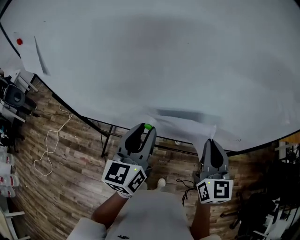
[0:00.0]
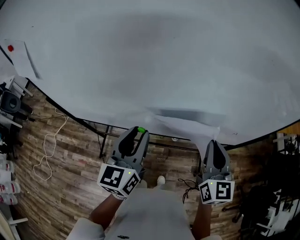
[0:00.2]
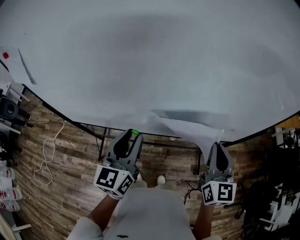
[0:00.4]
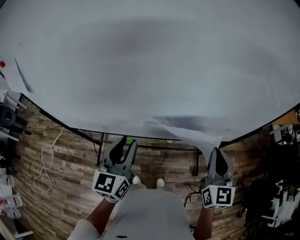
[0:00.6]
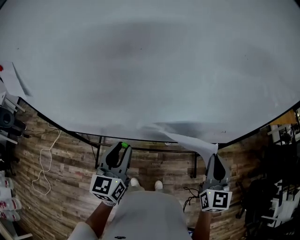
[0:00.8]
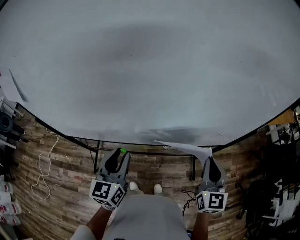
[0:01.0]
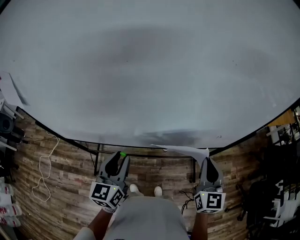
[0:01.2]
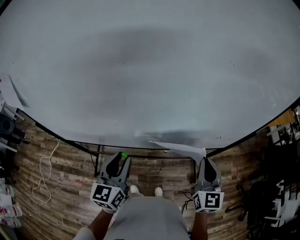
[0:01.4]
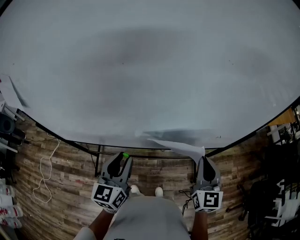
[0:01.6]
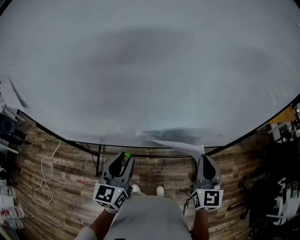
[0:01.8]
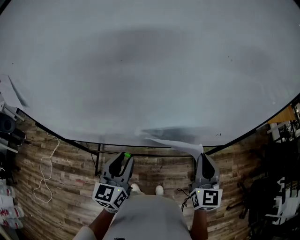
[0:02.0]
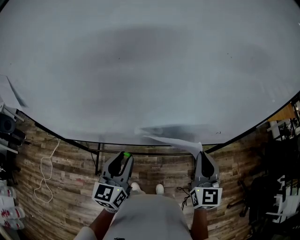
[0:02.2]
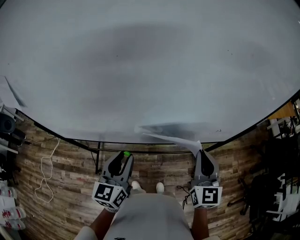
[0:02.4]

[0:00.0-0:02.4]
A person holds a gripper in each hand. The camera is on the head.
0:00.0 to 0:01.2: The left gripper shifts approximately 5 cm downward. Meanwhile the right gripper moves to the right, about 10 cm.
0:01.2 to 0:02.4: The grippers move only a little.

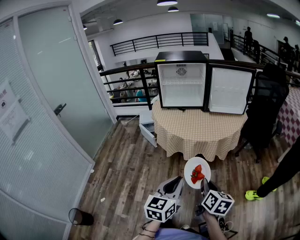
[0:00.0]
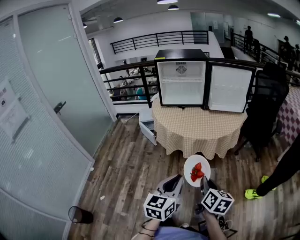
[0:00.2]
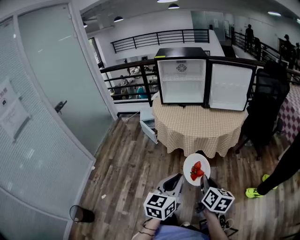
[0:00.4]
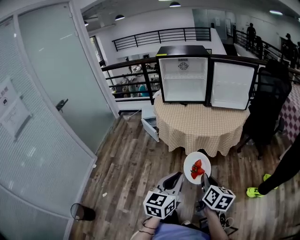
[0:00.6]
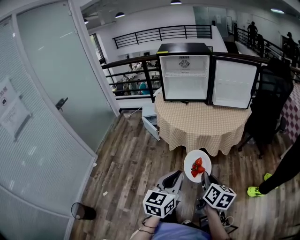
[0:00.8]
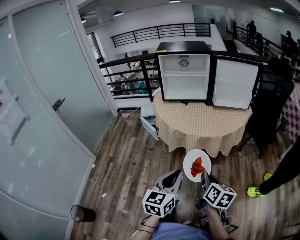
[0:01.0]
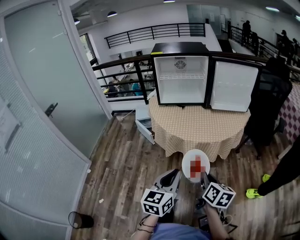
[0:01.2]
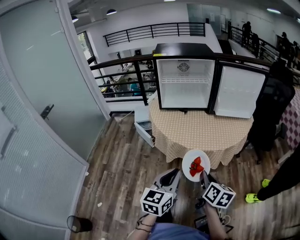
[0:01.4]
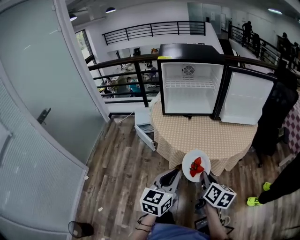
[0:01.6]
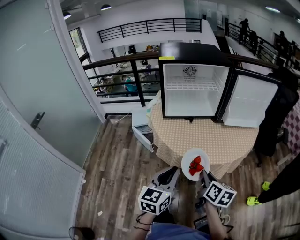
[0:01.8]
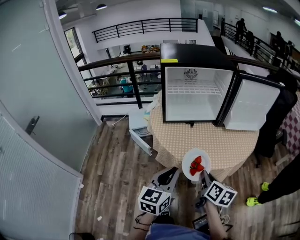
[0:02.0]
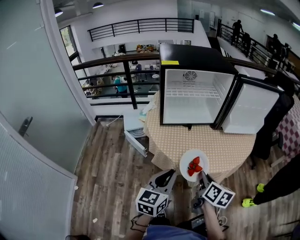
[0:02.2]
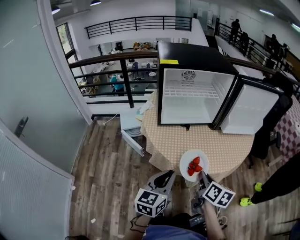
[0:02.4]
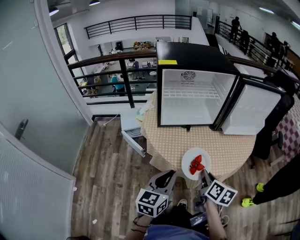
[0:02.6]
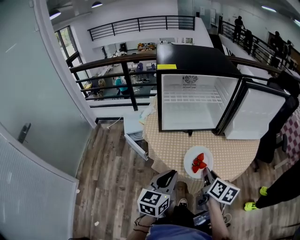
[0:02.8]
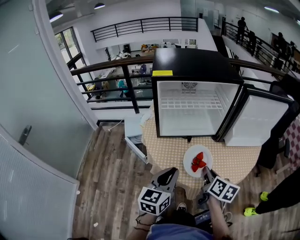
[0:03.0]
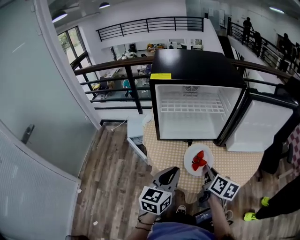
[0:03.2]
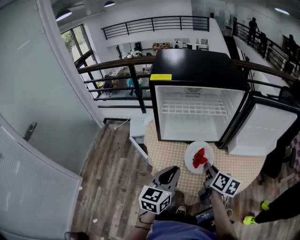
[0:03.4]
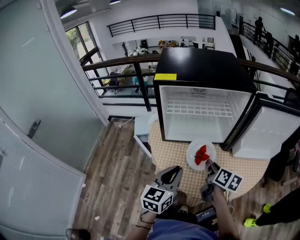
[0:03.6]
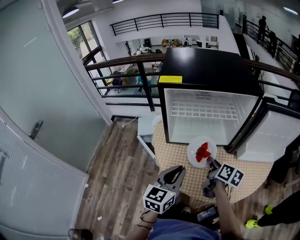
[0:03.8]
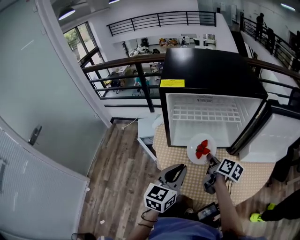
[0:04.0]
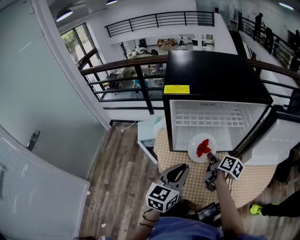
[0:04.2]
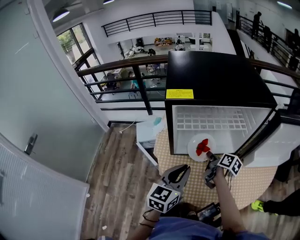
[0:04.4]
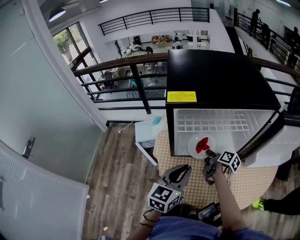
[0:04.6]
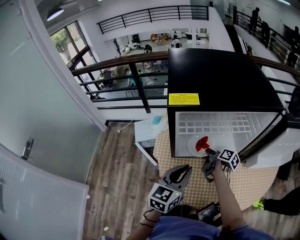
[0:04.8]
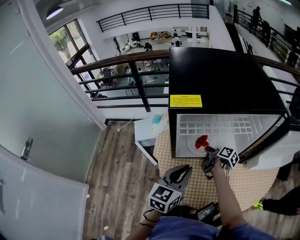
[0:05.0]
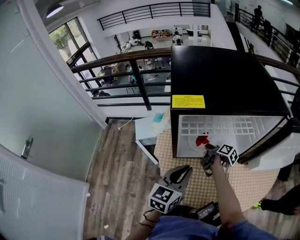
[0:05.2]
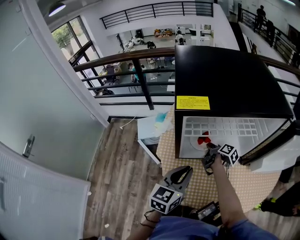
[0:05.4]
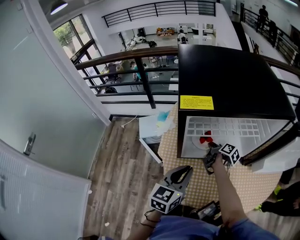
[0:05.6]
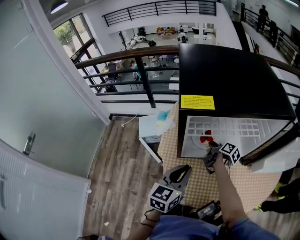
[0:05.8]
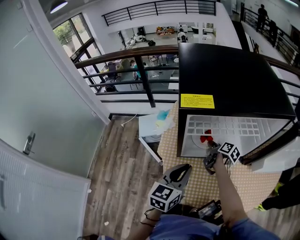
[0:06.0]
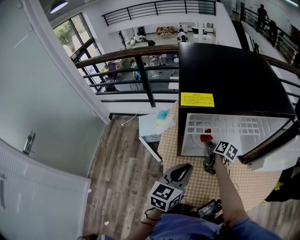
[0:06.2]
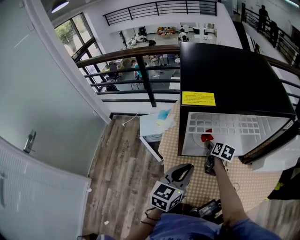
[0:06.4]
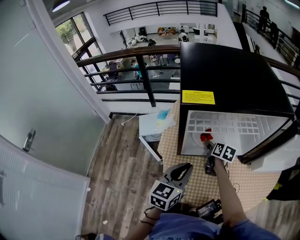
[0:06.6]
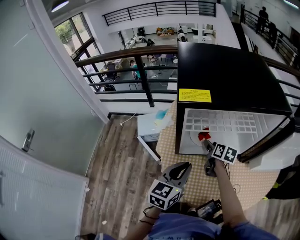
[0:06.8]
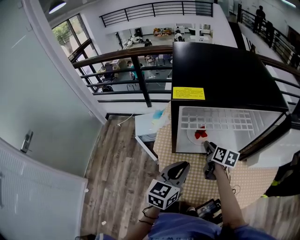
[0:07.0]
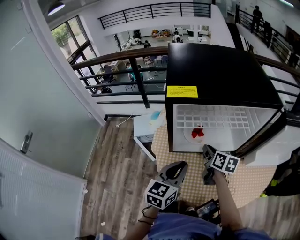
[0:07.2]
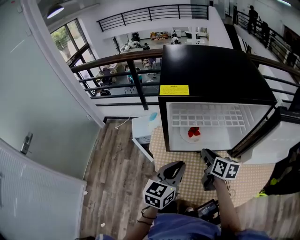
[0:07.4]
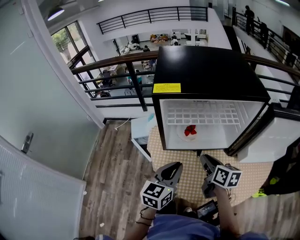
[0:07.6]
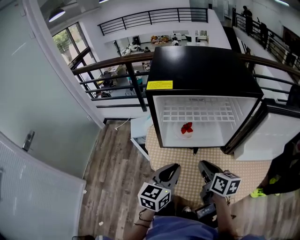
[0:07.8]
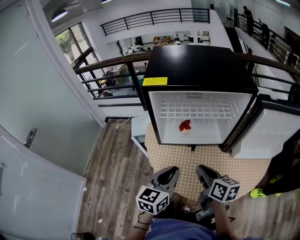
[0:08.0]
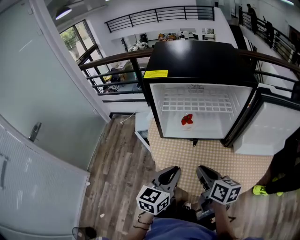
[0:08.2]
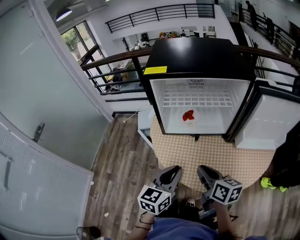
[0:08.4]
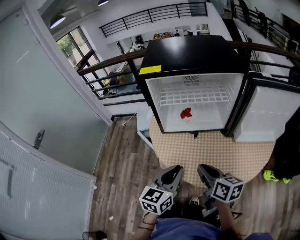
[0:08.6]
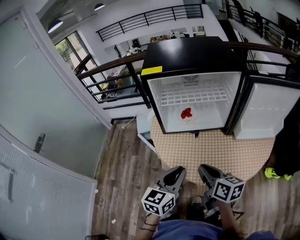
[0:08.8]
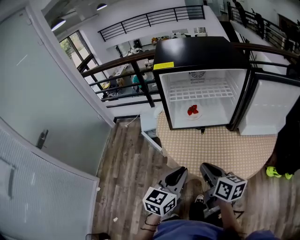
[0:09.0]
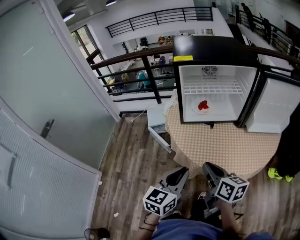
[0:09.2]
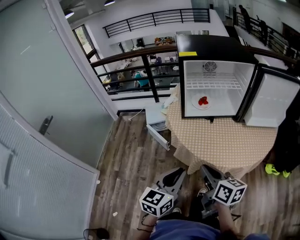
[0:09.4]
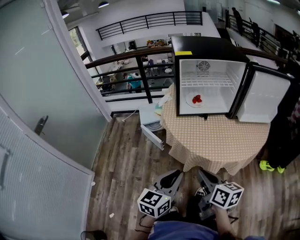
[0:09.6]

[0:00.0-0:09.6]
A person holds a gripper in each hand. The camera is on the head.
0:00.0 to 0:01.6: Both grippers move forward and to the left, some 25 cm.
0:01.6 to 0:03.2: The two grippers go roughly 30 cm forward.
0:03.2 to 0:04.8: The left gripper is displaced forward by some 15 cm. Meanwhile the right gripper goes some 30 cm forward and downward, and rotates some 30 degrees.
0:04.8 to 0:06.4: The right gripper changes place by some 5 cm, swivels approximately 40 degrees, and opens.
0:06.4 to 0:08.0: The left gripper is displaced backward and to the right by about 15 cm. The right gripper heads backward and upward, covering about 30 cm, rotates approximately 30 degrees, and closes up.
0:08.0 to 0:09.6: The grippers both shift backward and to the left by some 30 cm.

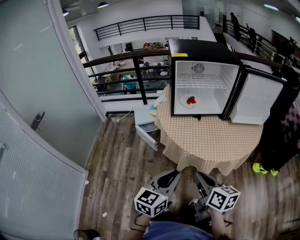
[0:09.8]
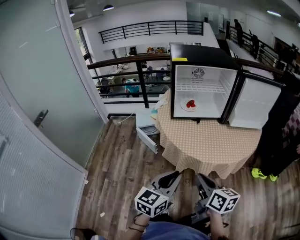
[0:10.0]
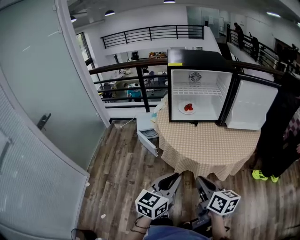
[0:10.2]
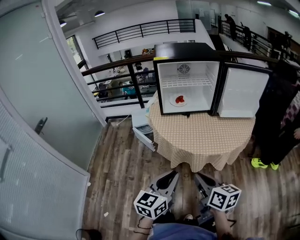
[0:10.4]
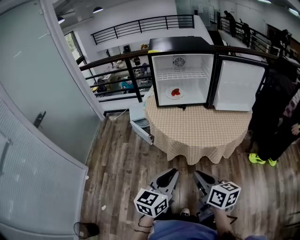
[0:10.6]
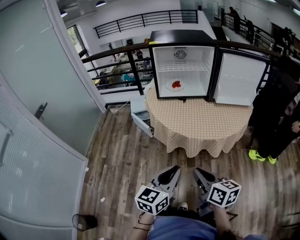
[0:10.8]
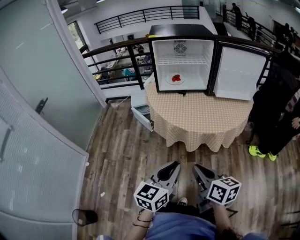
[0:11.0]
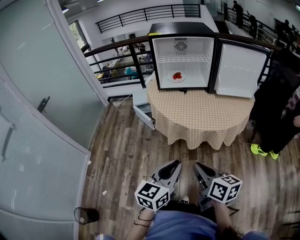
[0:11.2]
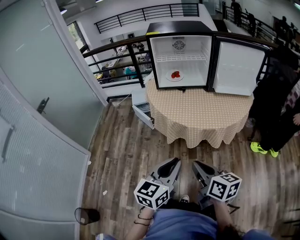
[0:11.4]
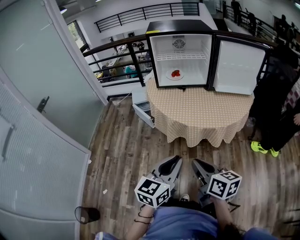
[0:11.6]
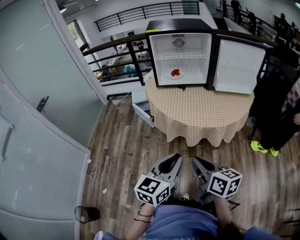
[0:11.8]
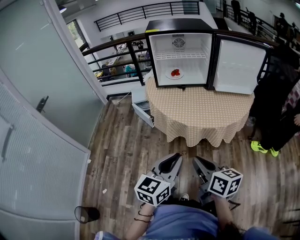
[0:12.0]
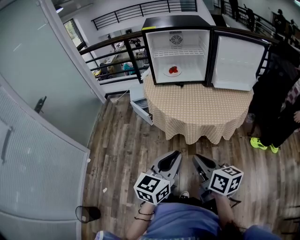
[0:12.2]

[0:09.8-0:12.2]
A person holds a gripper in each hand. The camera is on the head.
0:09.8 to 0:11.0: Both grippers move backward and to the right, some 20 cm.
0:11.0 to 0:12.2: The grippers move only a little.

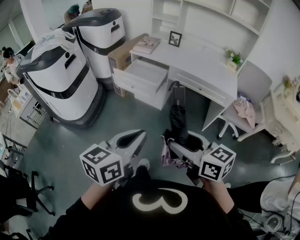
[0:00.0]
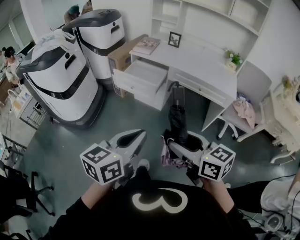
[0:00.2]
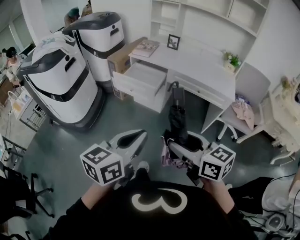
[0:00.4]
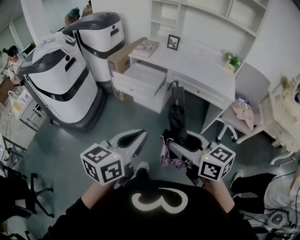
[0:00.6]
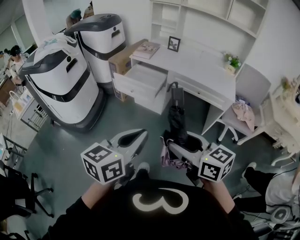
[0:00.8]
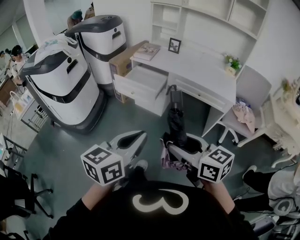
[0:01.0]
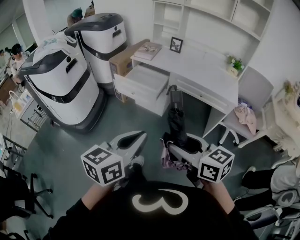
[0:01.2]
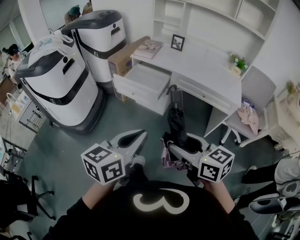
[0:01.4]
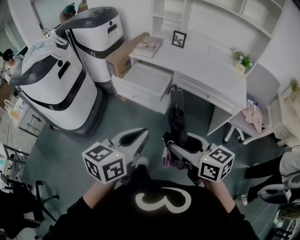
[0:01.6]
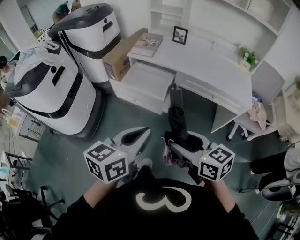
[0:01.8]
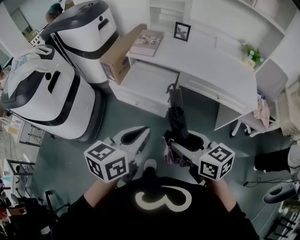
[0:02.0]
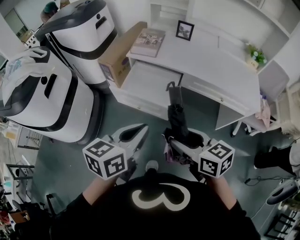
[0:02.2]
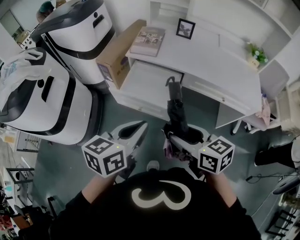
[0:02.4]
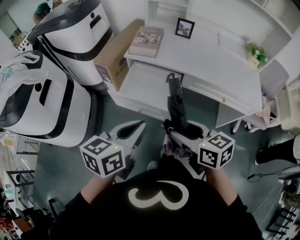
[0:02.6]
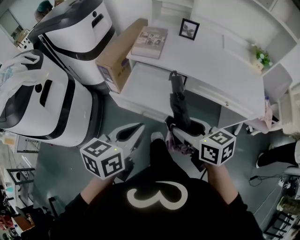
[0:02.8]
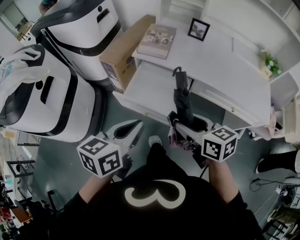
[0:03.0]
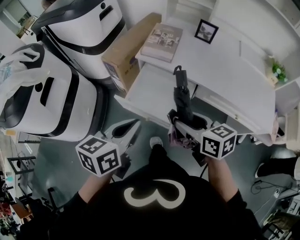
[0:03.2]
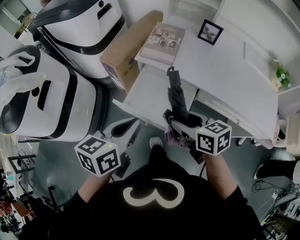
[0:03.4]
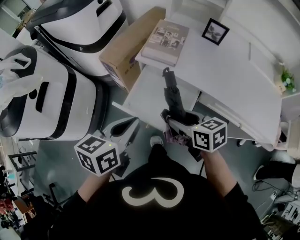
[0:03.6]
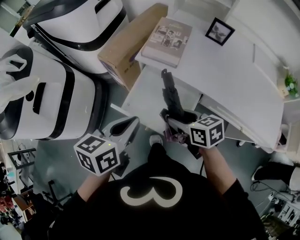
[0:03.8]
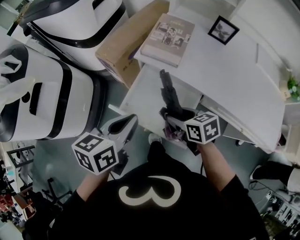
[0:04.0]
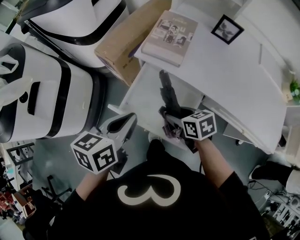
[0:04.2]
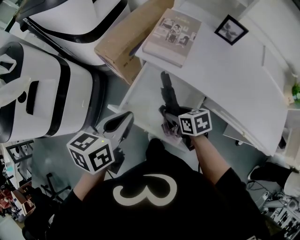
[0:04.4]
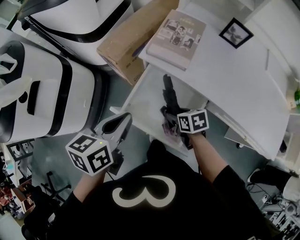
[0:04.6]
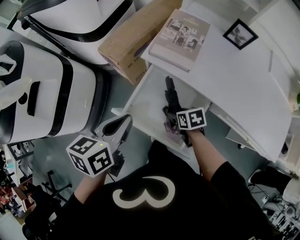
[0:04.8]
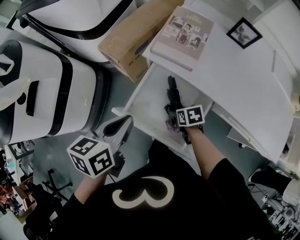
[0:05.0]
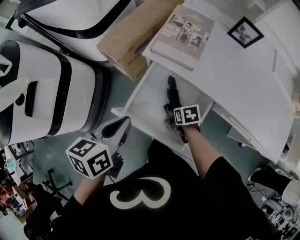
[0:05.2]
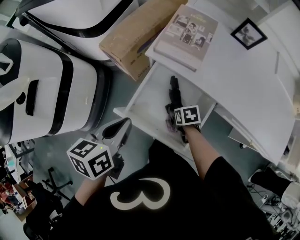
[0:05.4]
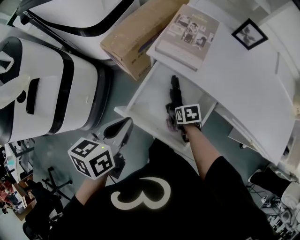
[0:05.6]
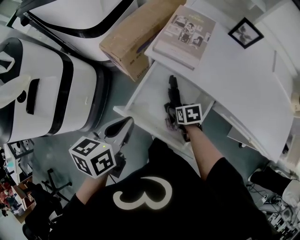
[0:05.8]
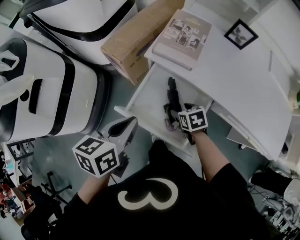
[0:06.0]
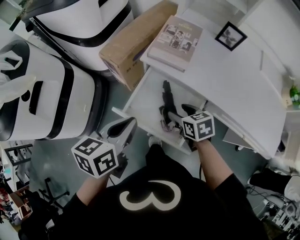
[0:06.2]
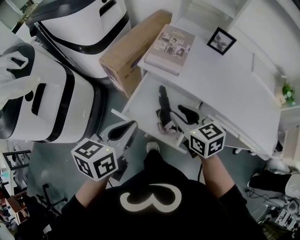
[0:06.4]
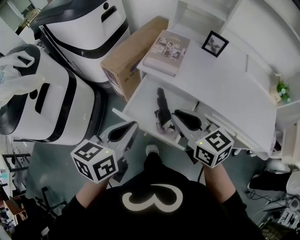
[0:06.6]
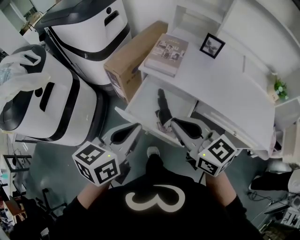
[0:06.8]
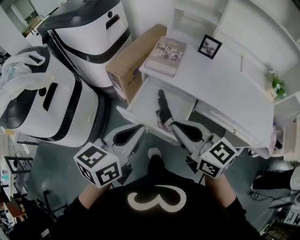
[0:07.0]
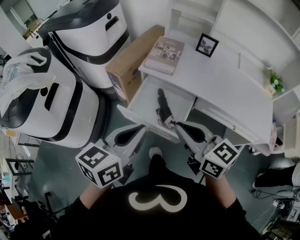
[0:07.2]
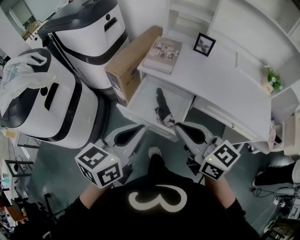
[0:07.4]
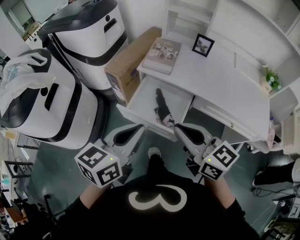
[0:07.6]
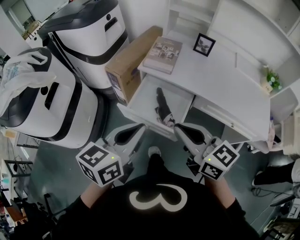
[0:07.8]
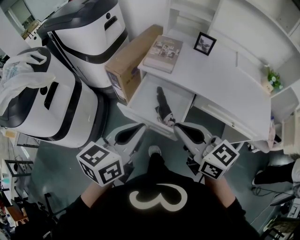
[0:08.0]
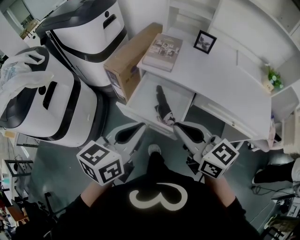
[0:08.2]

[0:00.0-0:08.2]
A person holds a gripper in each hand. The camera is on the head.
0:00.0 to 0:01.6: The grippers both shift forward by roughly 15 cm.
0:01.6 to 0:03.2: The two grippers go about 40 cm forward.
0:03.2 to 0:05.0: The right gripper goes some 35 cm downward and forward, and angles its fingers downward, by about 30 degrees, while the left gripper goes approximately 20 cm forward and downward.
0:05.0 to 0:06.6: The right gripper travels upward by approximately 35 cm, points its fingers approximately 40 degrees further upward, and closes its fingers. The left gripper travels upward and backward by some 15 cm.
0:06.6 to 0:08.2: Both grippers travel together backward and upward, roughly 10 cm.

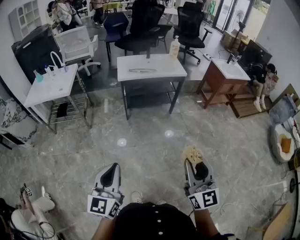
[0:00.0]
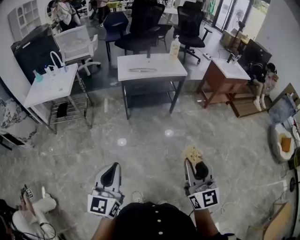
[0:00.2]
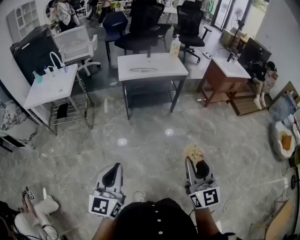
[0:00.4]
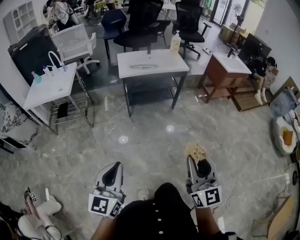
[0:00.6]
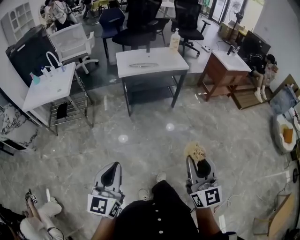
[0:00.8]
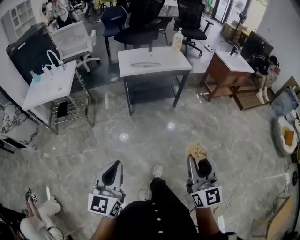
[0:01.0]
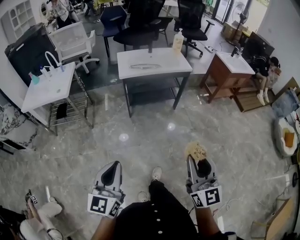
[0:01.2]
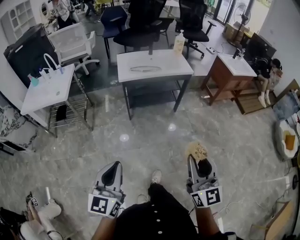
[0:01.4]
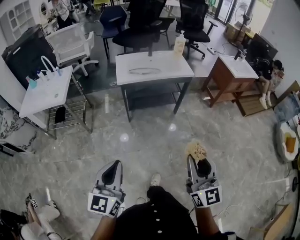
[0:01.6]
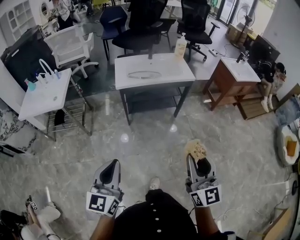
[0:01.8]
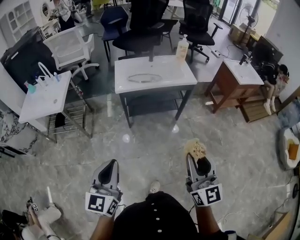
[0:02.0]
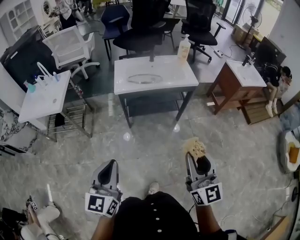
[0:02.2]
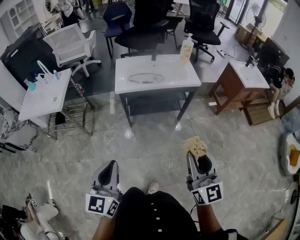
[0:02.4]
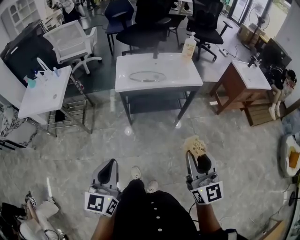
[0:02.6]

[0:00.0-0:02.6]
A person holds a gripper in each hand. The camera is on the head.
0:00.0 to 0:01.2: Both grippers travel together forward, about 5 cm.
0:01.2 to 0:02.6: Both grippers travel together forward, approximately 25 cm.
